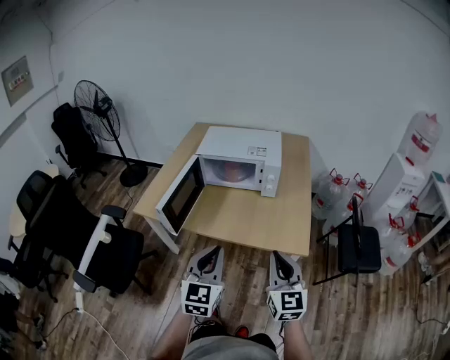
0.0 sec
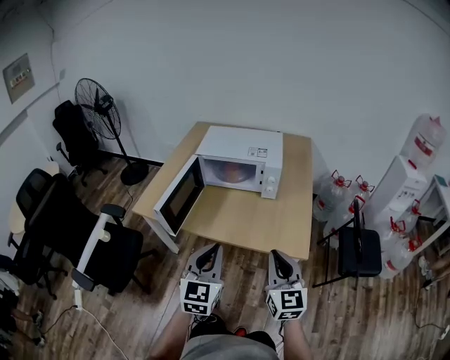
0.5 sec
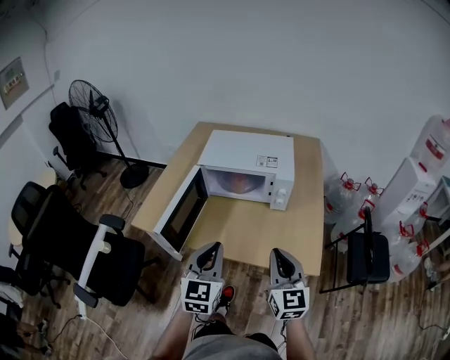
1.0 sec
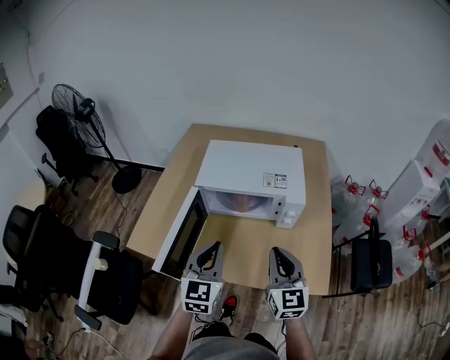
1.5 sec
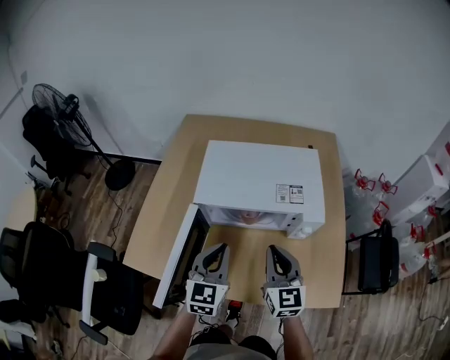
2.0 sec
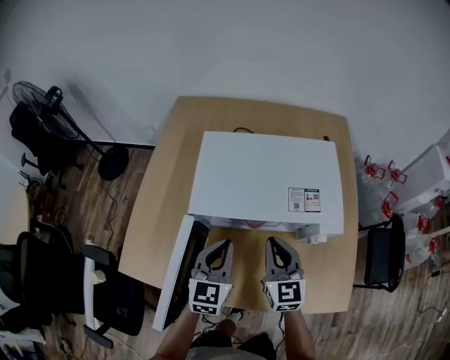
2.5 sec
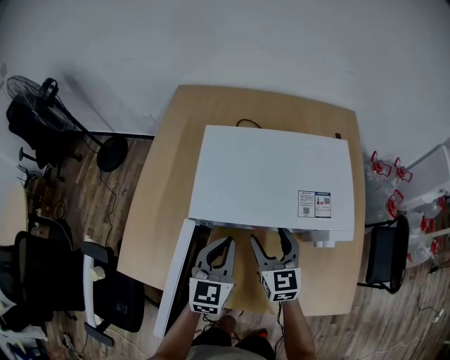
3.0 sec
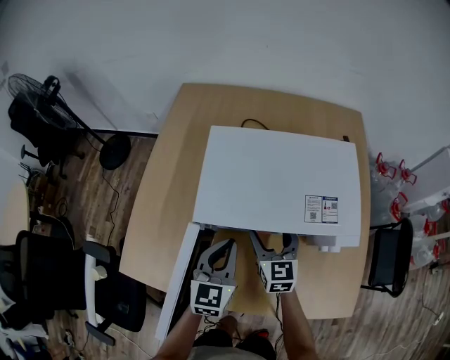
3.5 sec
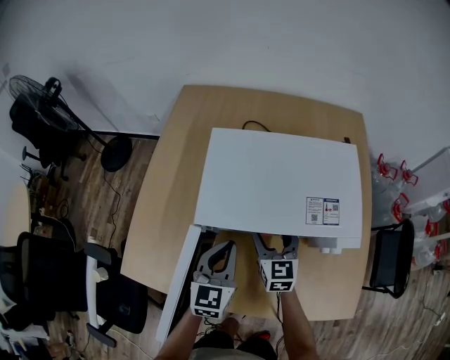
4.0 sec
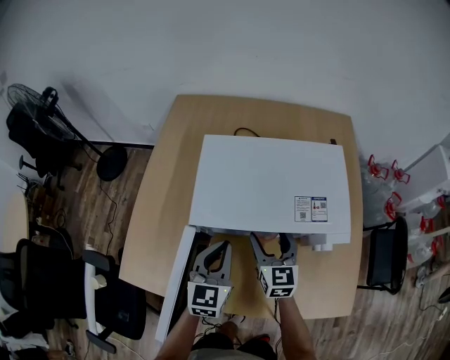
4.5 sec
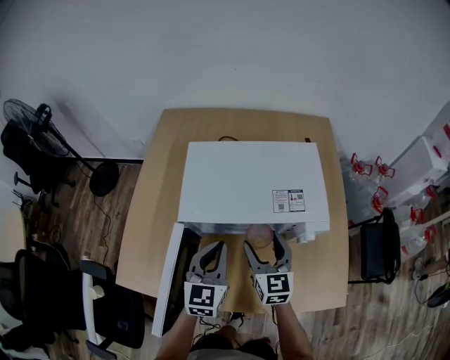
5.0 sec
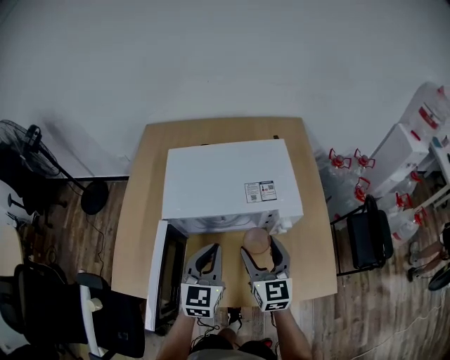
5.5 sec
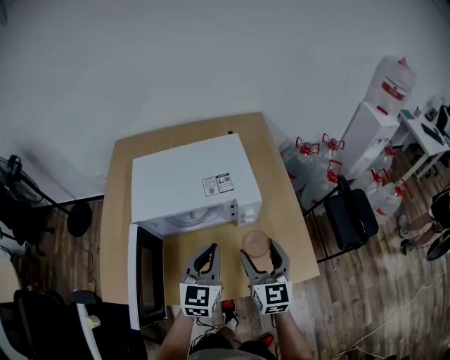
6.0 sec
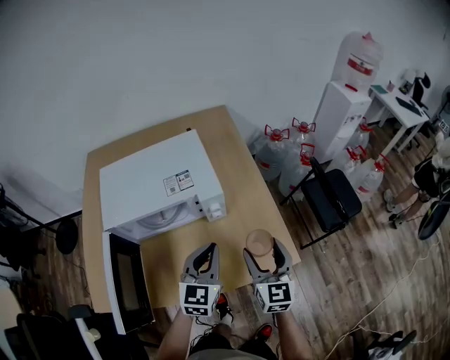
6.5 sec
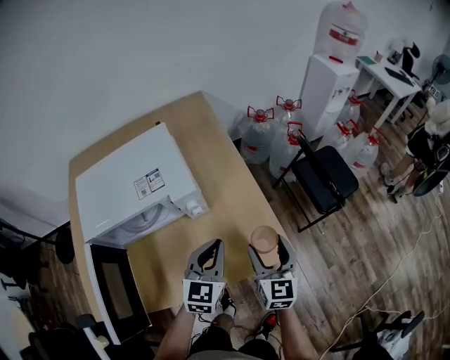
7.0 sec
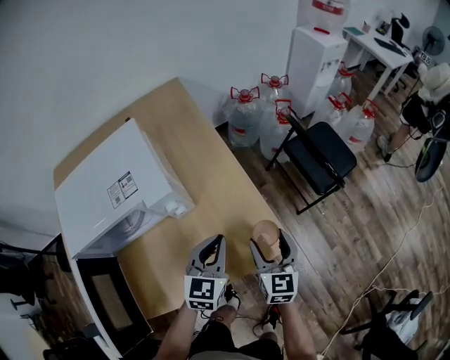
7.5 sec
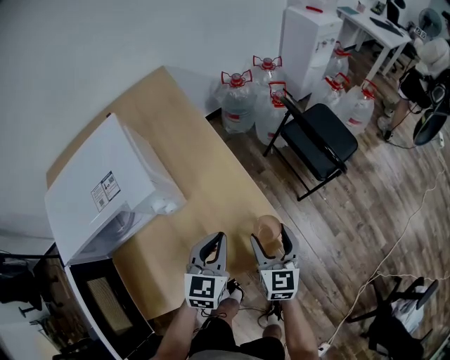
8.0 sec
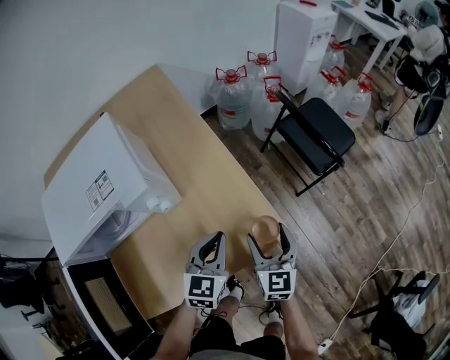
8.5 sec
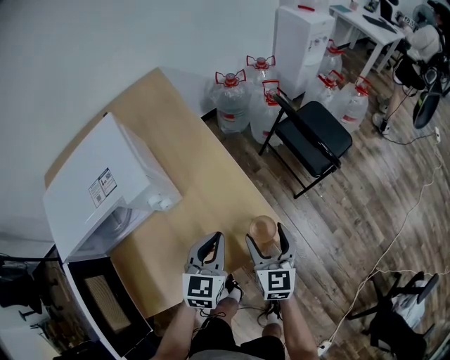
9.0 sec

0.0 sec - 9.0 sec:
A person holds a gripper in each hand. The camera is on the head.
0.0 sec - 2.0 sec: Both grippers move forward, roughly 35 cm.
2.0 sec - 4.5 sec: The left gripper travels forward and downward by some 10 cm, while the right gripper travels forward and downward by some 20 cm, and opens up.
4.5 sec - 7.0 sec: The left gripper moves some 35 cm, and turns by about 30 degrees. The right gripper reaches approximately 10 cm upward, then returns, and rotates approximately 30 degrees.
7.0 sec - 9.0 sec: The grippers both shift downward and to the right by some 10 cm.

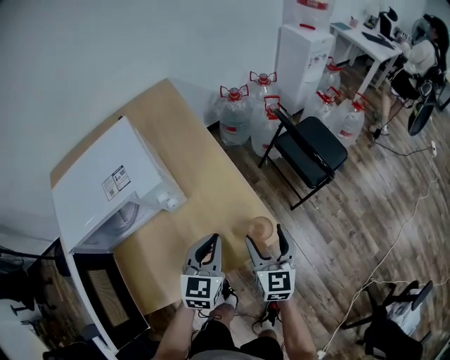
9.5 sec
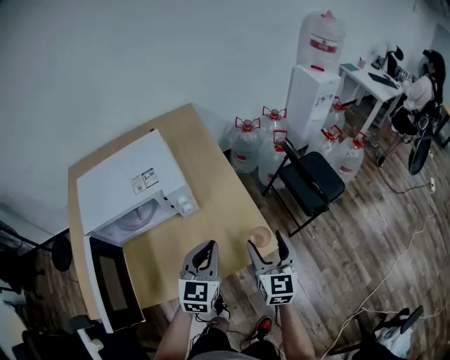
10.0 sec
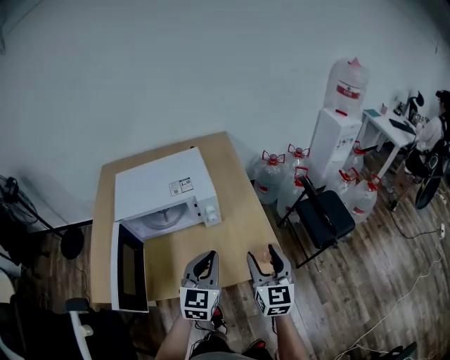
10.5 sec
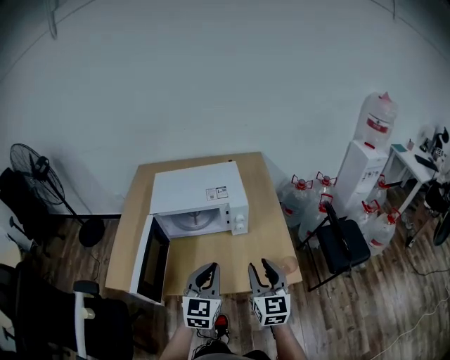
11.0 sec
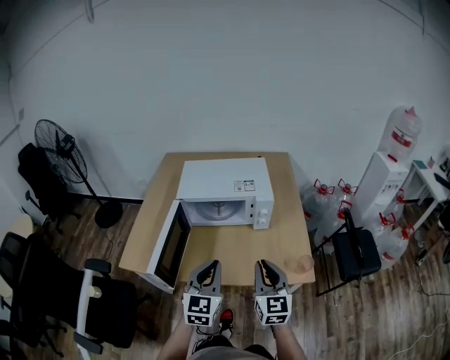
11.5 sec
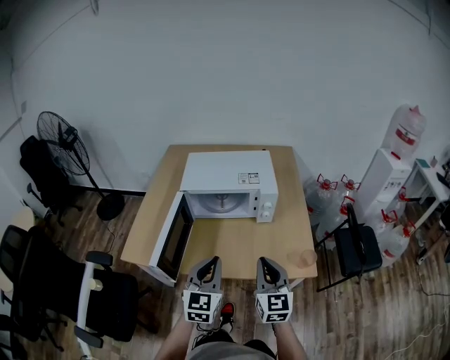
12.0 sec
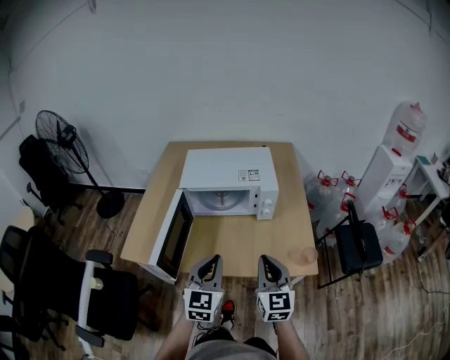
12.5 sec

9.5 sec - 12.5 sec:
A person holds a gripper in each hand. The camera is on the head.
9.5 sec - 11.0 sec: The right gripper travels upward by about 20 cm, rotates roughly 30 degrees, and closes up. Meanwhile the left gripper moves roughly 25 cm, and turns by some 30 degrees.
11.0 sec - 12.5 sec: Both grippers travel together to the left, approximately 5 cm. The right gripper closes up.

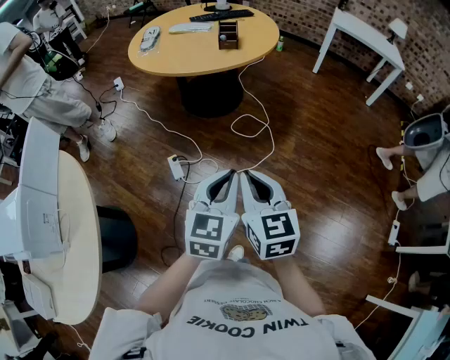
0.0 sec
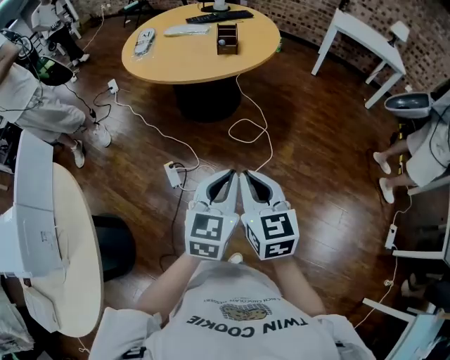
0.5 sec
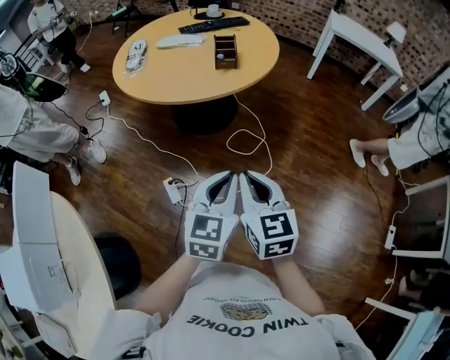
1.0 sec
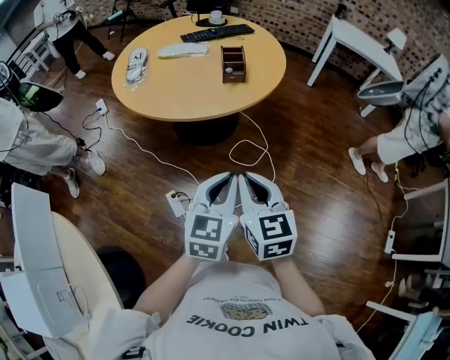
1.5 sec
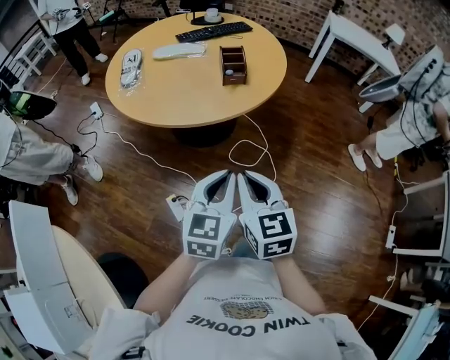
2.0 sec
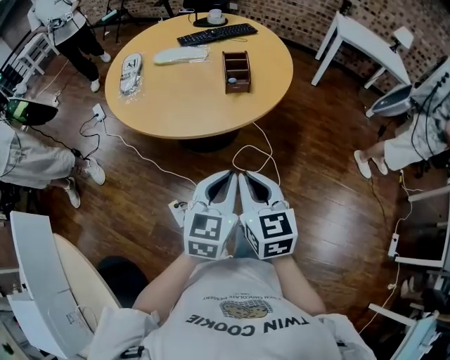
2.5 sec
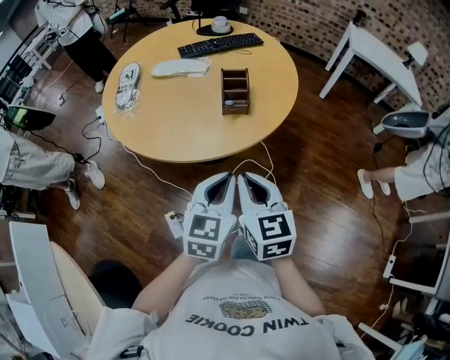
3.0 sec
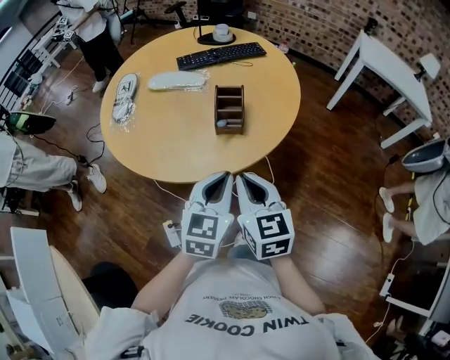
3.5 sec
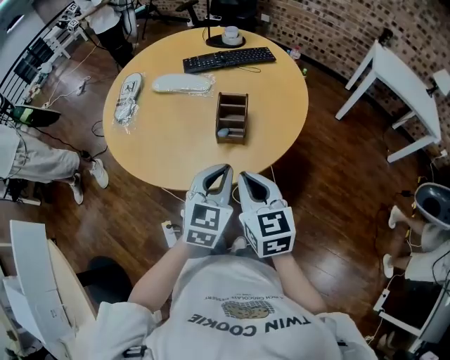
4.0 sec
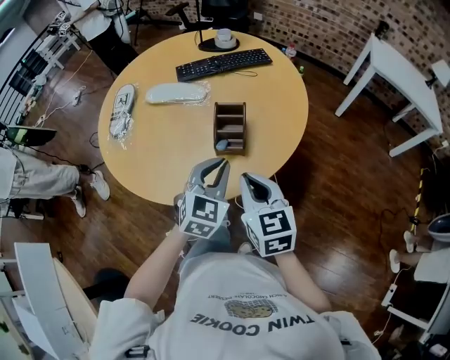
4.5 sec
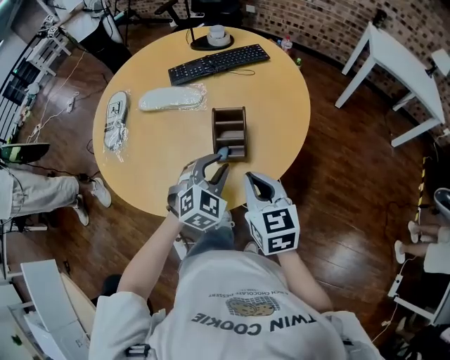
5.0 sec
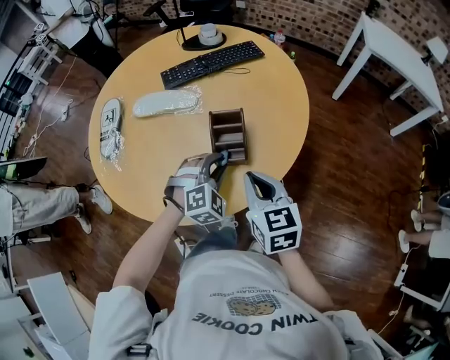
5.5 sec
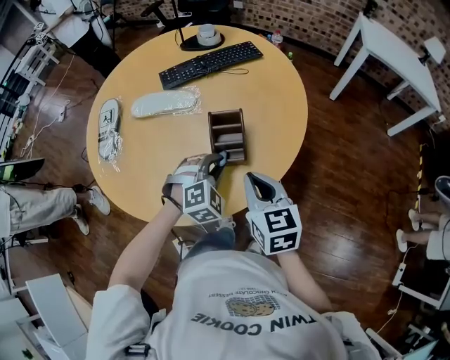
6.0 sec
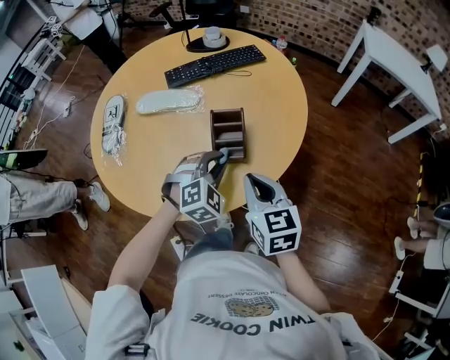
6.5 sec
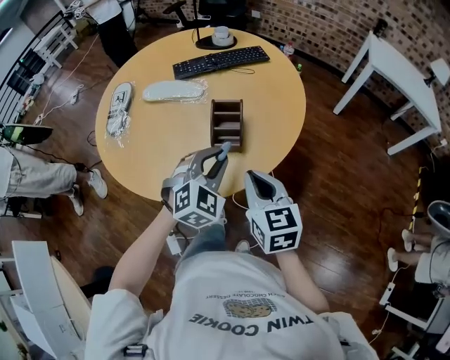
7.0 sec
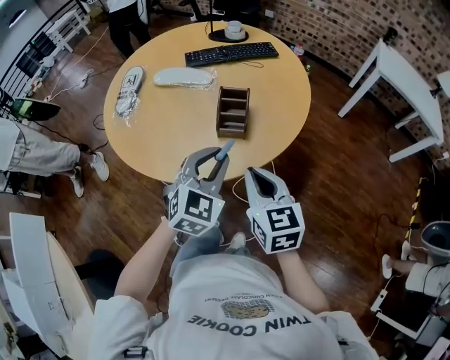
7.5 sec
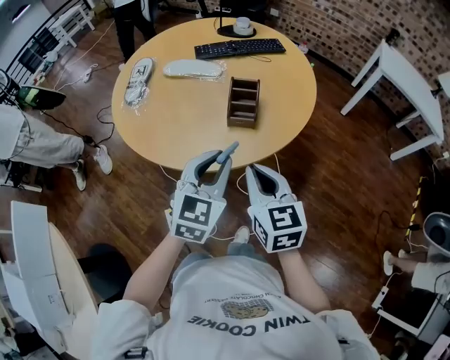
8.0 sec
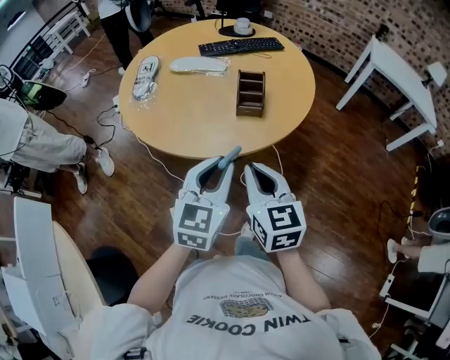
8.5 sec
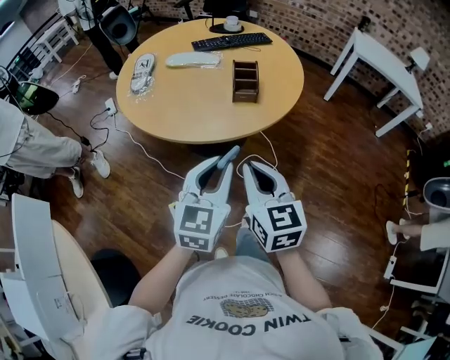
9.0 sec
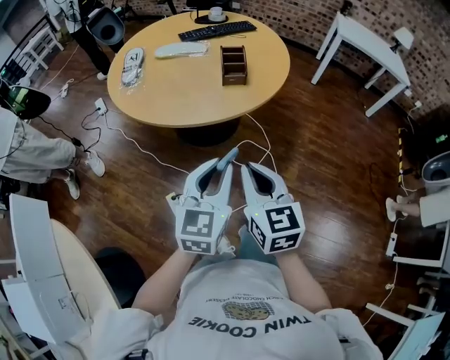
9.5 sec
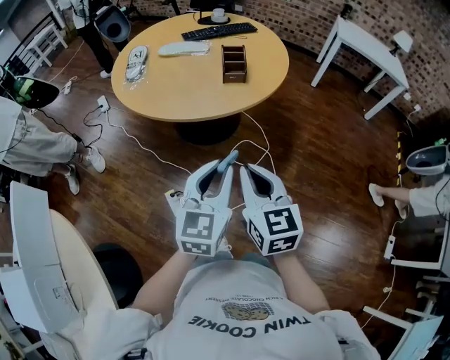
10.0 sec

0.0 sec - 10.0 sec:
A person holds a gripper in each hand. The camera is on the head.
0.0 sec - 2.0 sec: The two grippers go roughly 35 cm forward and to the left.
2.0 sec - 4.0 sec: The grippers both shift forward by approximately 30 cm.
4.0 sec - 6.0 sec: The left gripper shifts some 20 cm forward and downward, and rotates around the line of its fingers by approximately 50 degrees, clockwise from behind; the right gripper moves forward and downward, some 10 cm.
6.0 sec - 8.0 sec: The left gripper travels backward and upward by roughly 25 cm, and rotates around the line of its fingers by some 50 degrees, counterclockwise from behind. Meanwhile the right gripper moves backward, approximately 15 cm.
8.0 sec - 10.0 sec: The two grippers go roughly 25 cm backward.

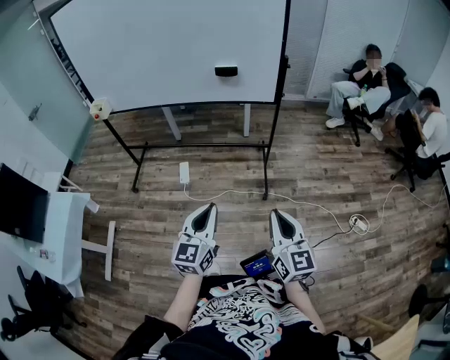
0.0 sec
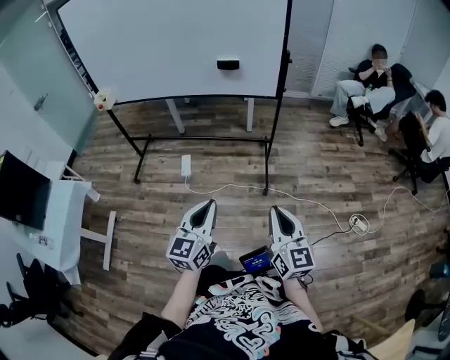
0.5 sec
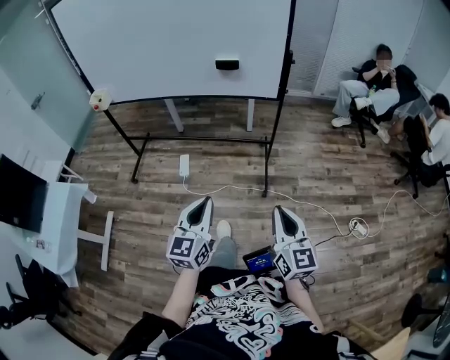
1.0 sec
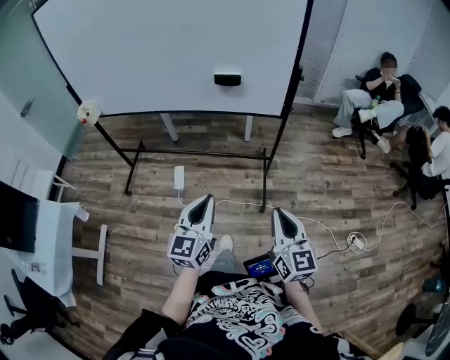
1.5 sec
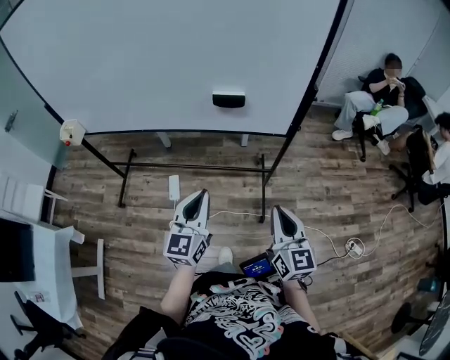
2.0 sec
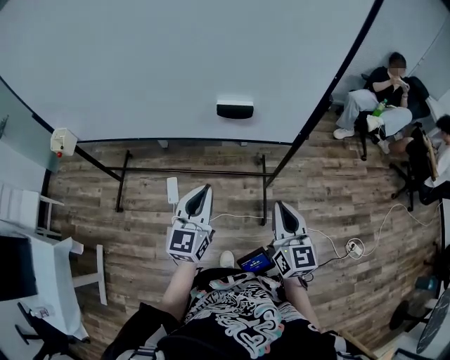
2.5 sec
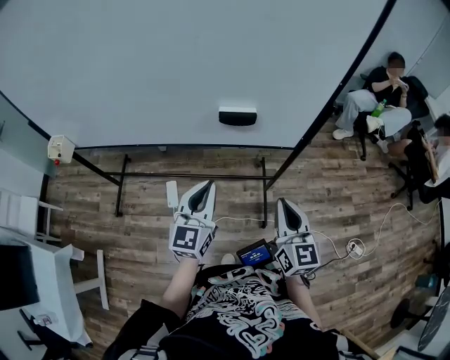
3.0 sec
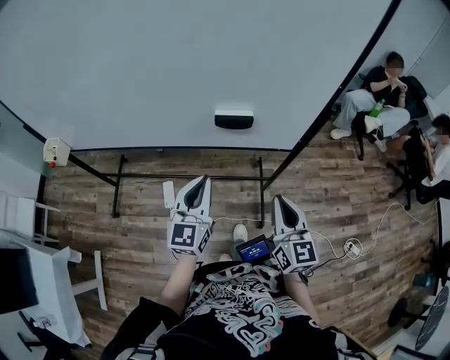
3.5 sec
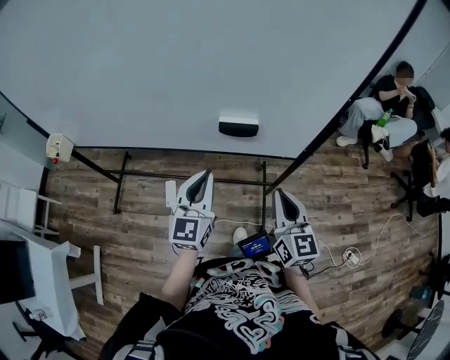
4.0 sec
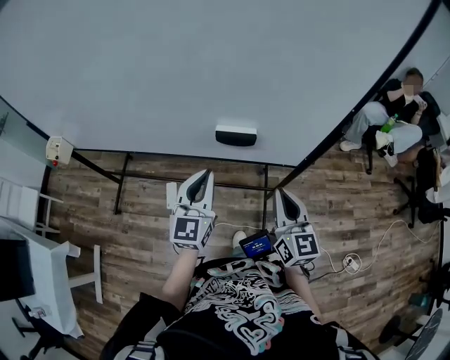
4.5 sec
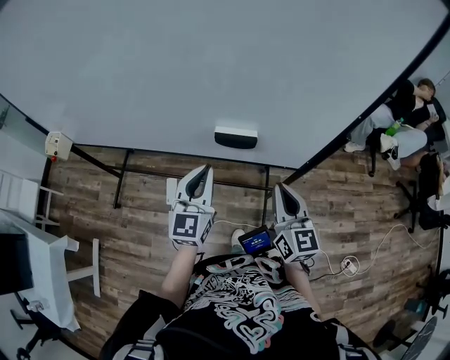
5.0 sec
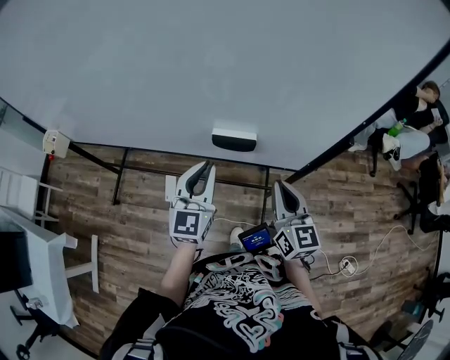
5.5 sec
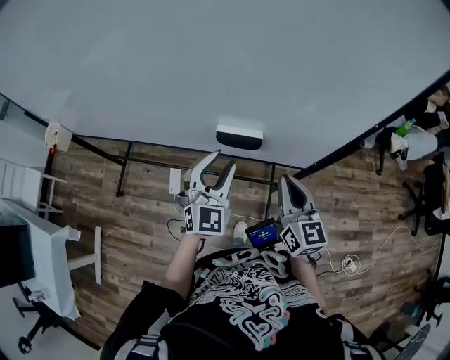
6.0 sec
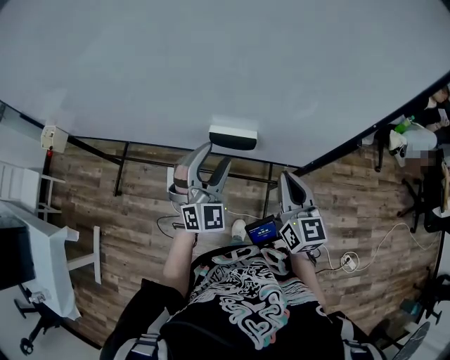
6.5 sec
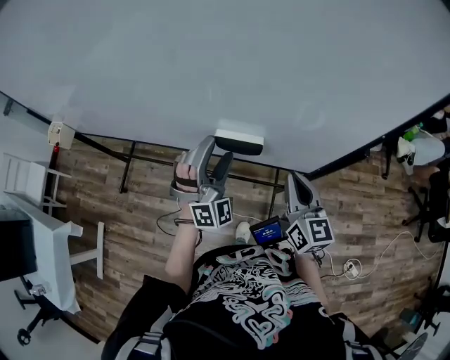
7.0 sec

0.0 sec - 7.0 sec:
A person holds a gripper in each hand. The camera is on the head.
0.0 sec - 2.0 sec: The two grippers go roughly 35 cm forward.
2.0 sec - 3.5 sec: Both grippers move forward, approximately 15 cm.
3.5 sec - 5.0 sec: Both grippers move forward, approximately 10 cm.
5.0 sec - 7.0 sec: The two grippers go about 5 cm forward. The left gripper twists about 60 degrees clockwise, seen from behind, and opens up.
